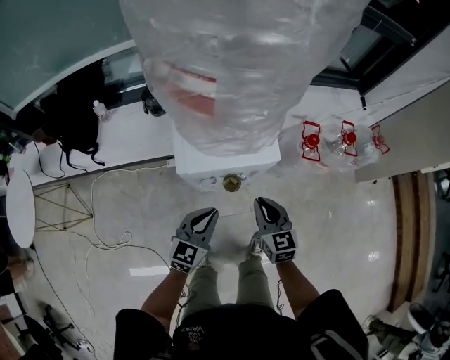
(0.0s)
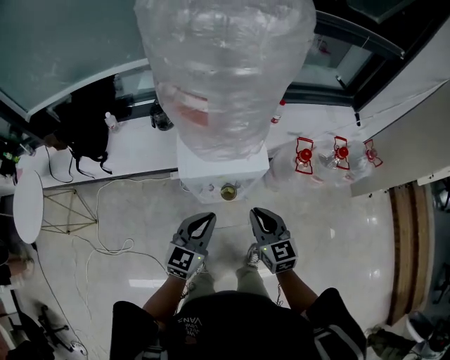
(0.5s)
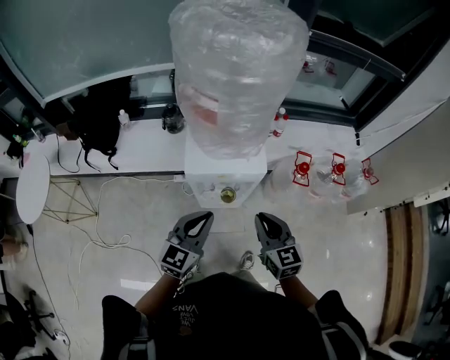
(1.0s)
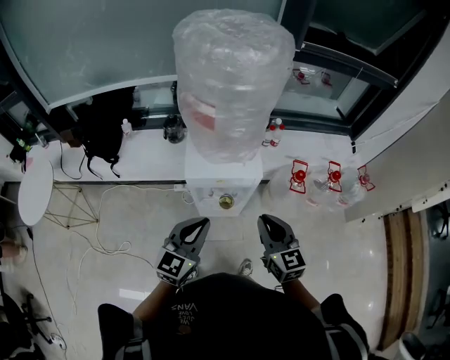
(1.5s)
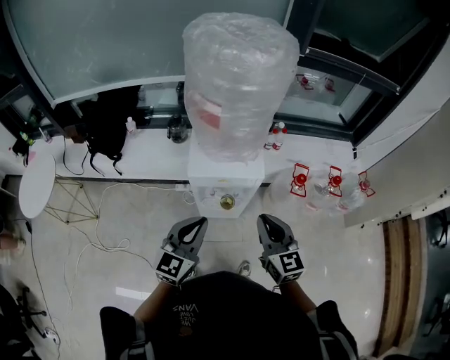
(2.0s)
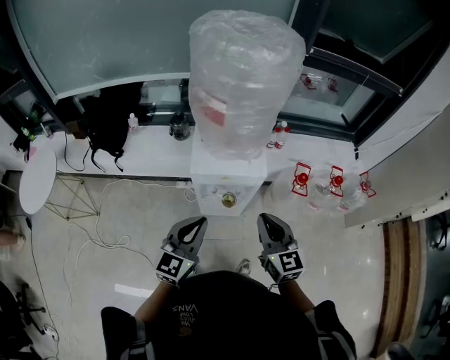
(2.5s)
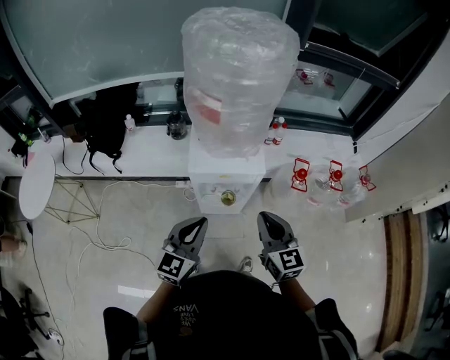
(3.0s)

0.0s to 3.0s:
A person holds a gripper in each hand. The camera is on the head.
0.0s to 1.5s: The left gripper travels upward by approximately 20 cm. The right gripper heads upward and backward, covering roughly 20 cm.
1.5s to 3.0s: There are only small adjustments of the grippers.

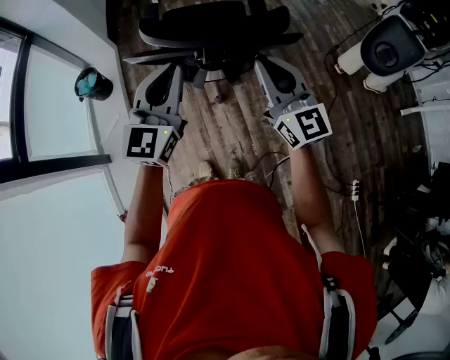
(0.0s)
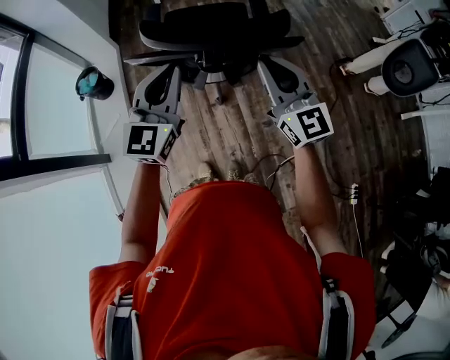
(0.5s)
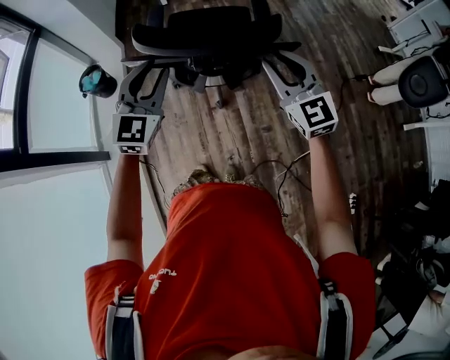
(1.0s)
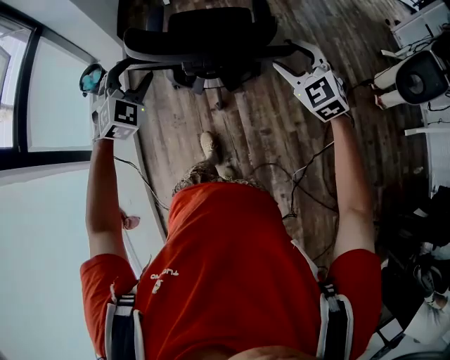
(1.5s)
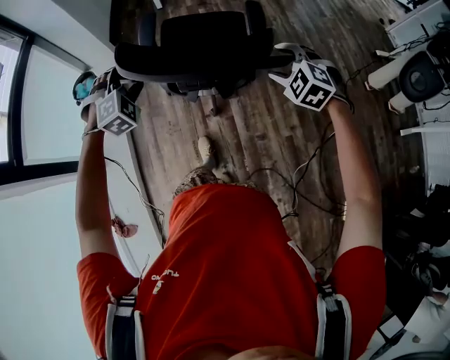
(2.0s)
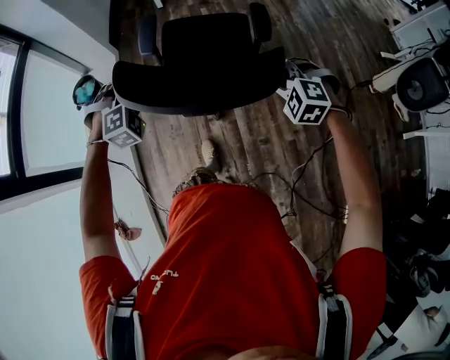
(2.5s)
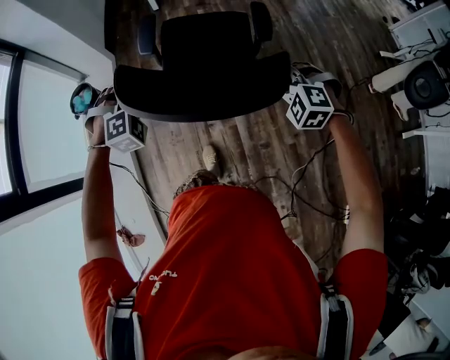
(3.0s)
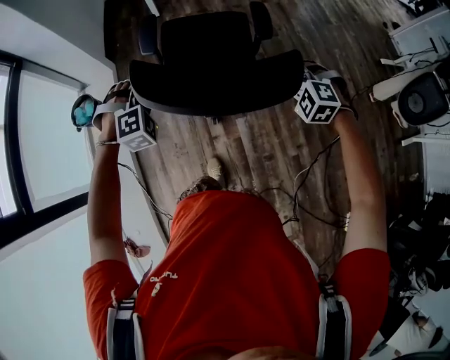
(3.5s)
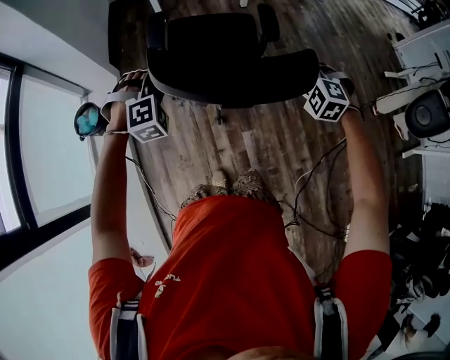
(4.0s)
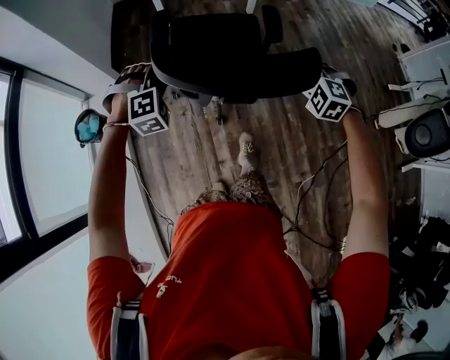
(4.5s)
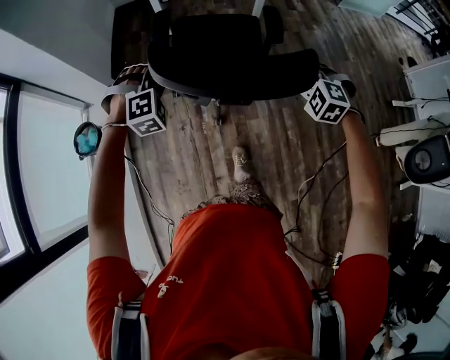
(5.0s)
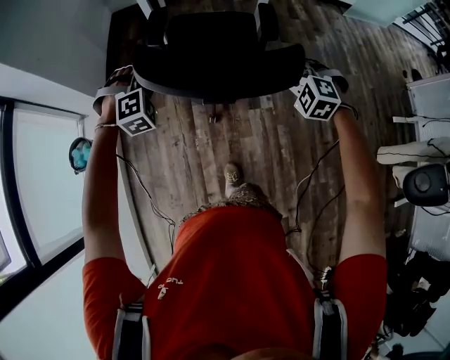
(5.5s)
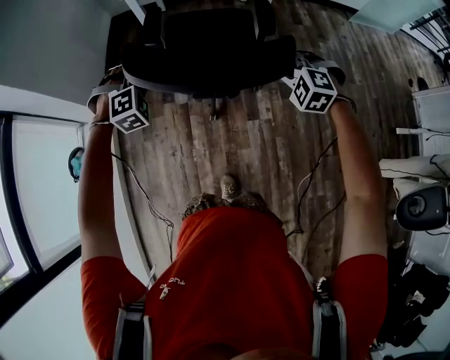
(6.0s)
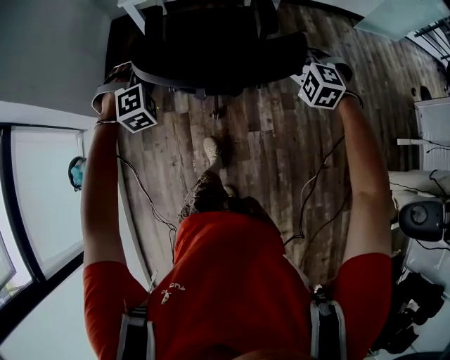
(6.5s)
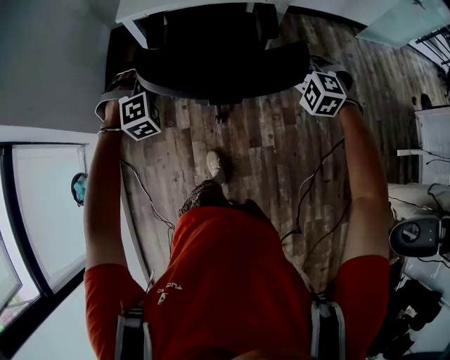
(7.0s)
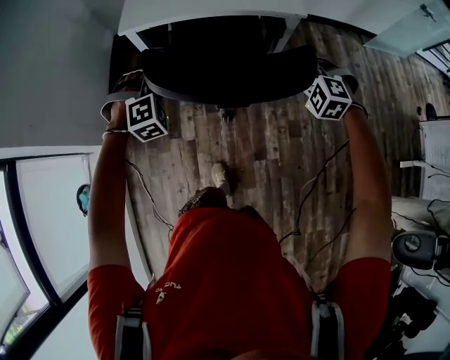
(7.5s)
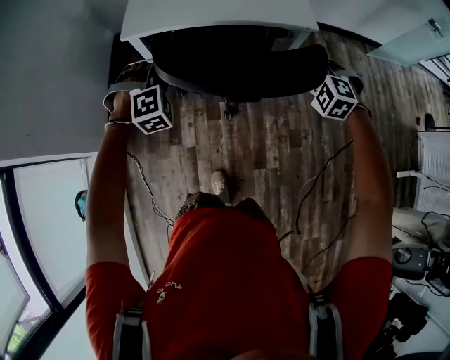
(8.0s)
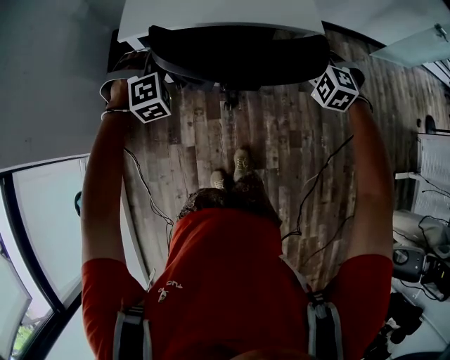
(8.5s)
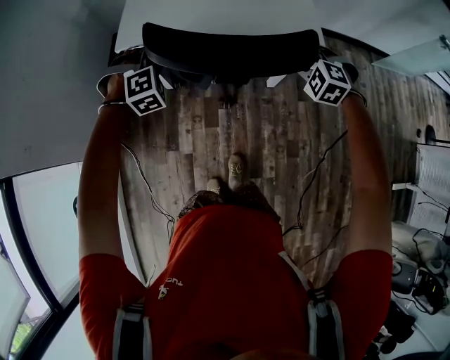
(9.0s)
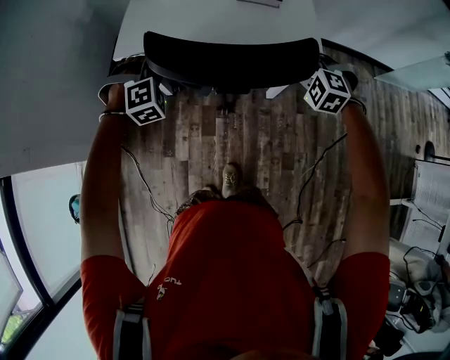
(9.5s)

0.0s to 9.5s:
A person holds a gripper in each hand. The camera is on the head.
0.0s to 2.0s: The left gripper travels forward, downward and to the left by about 20 cm, points its fingers approximately 50 degrees further downward, and opens its fingers. Meanwhile the right gripper shifts approximately 20 cm downward, forward and to the right, points its fingers approximately 60 degrees further downward, and opens its fingers.
2.0s to 4.0s: Both grippers travel together forward, some 25 cm. The left gripper closes its fingers. Meanwhile the right gripper closes.
4.0s to 5.5s: The two grippers go some 30 cm forward.
5.5s to 7.5s: Both grippers move forward, approximately 35 cm.
7.5s to 9.5s: The grippers both shift forward by roughly 25 cm.

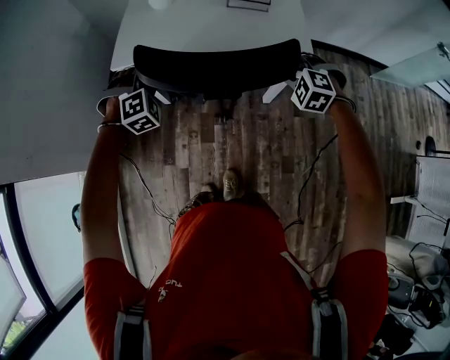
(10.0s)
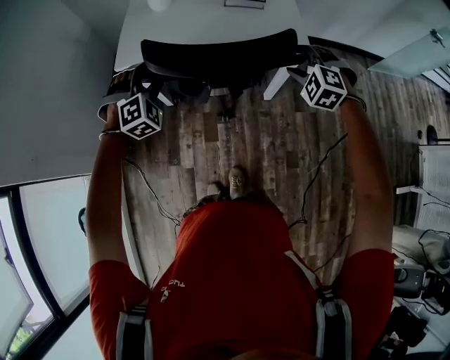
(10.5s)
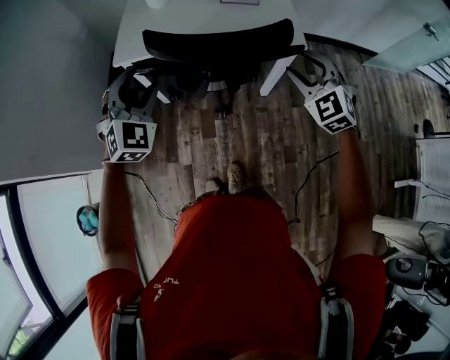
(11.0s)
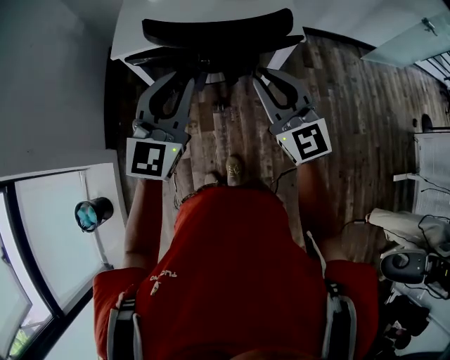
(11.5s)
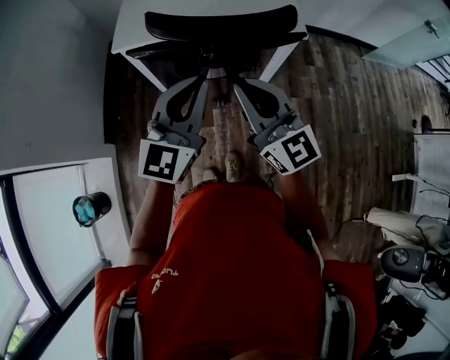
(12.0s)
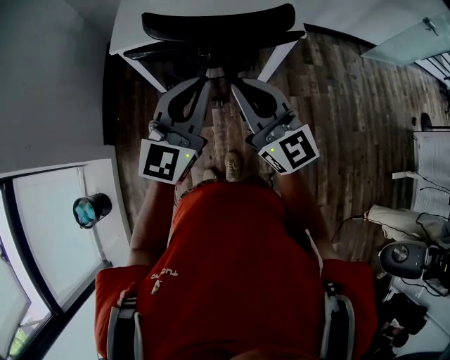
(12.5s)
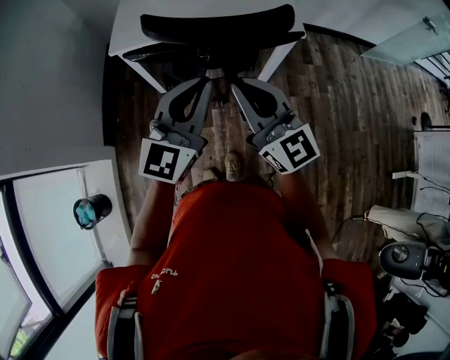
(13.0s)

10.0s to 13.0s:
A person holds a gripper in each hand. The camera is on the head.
10.0s to 11.5s: The left gripper travels backward and upward by roughly 25 cm, tilts its fingers roughly 40 degrees upward, and opens and closes again. Meanwhile the right gripper shifts some 25 cm backward, upward and to the left, and tips its fingers upward by about 50 degrees.
11.5s to 13.0s: The right gripper is displaced to the left by roughly 5 cm.

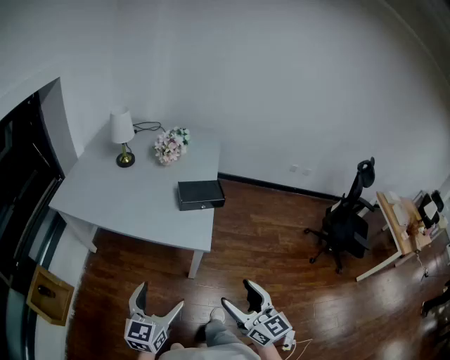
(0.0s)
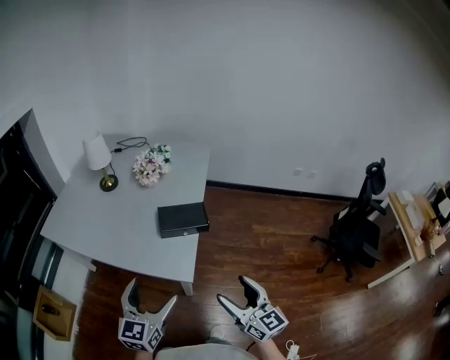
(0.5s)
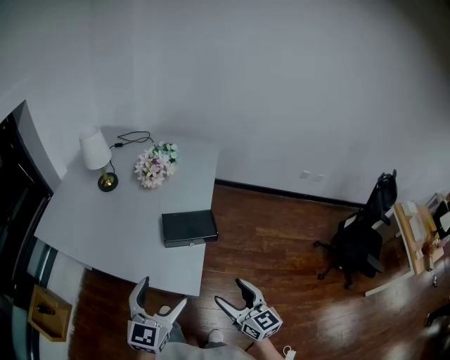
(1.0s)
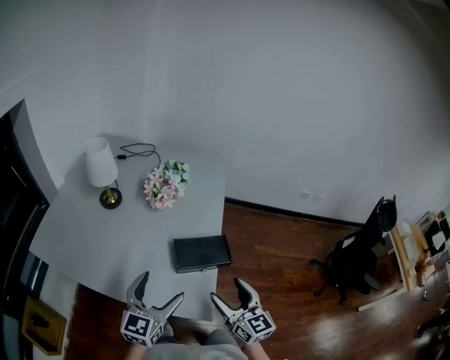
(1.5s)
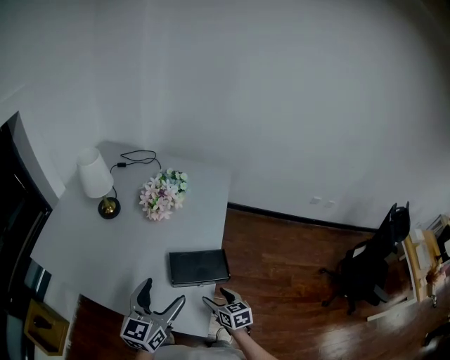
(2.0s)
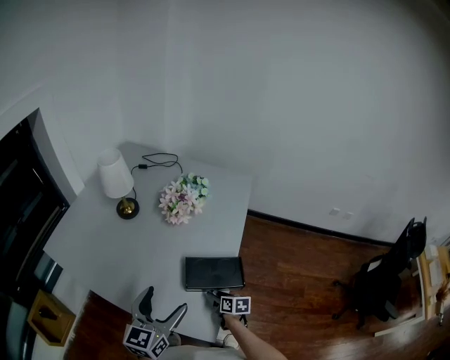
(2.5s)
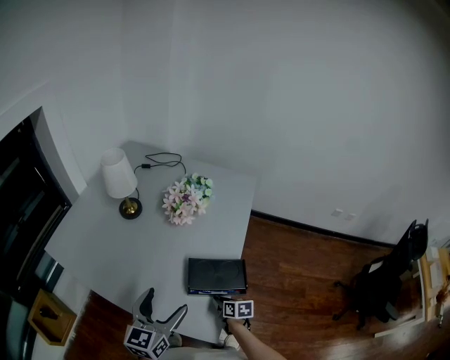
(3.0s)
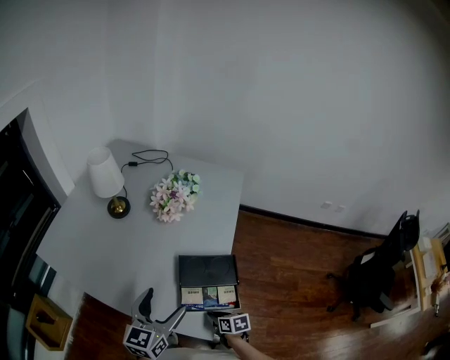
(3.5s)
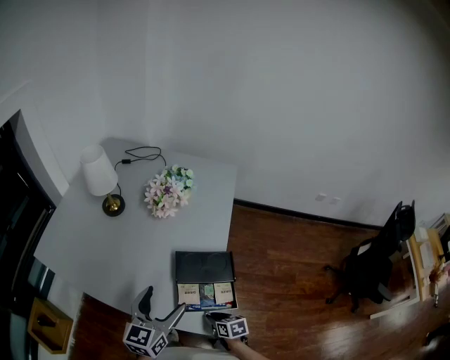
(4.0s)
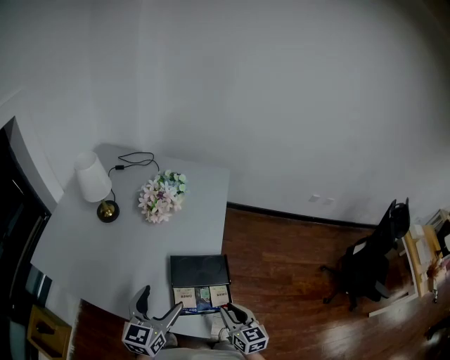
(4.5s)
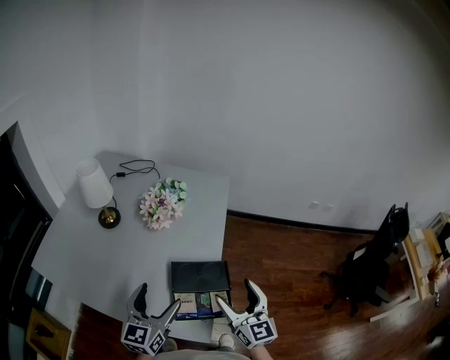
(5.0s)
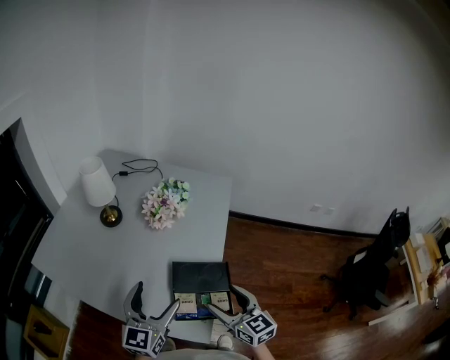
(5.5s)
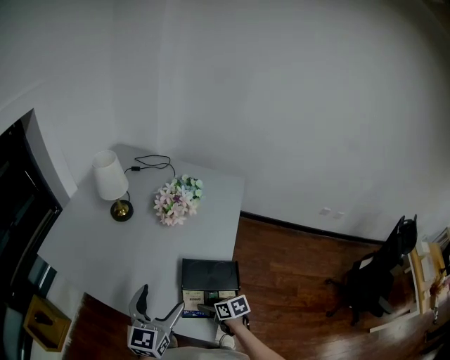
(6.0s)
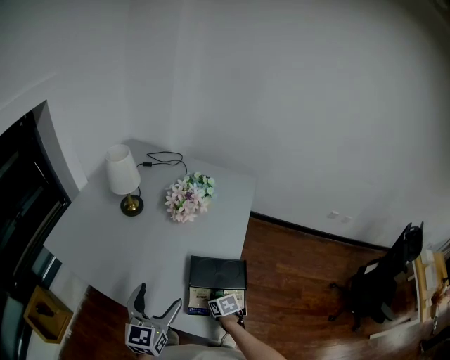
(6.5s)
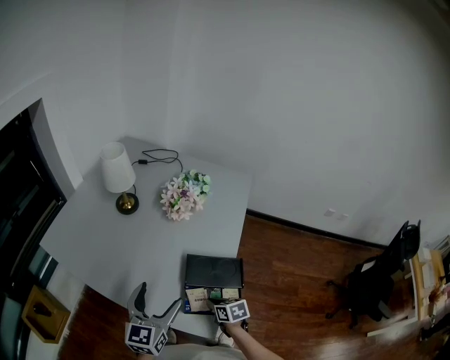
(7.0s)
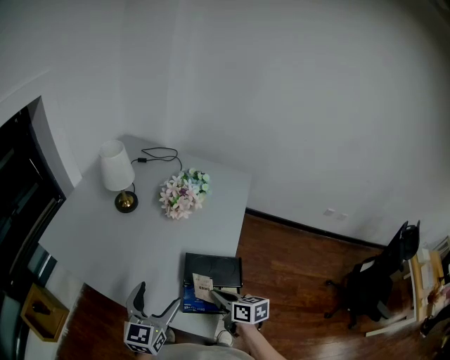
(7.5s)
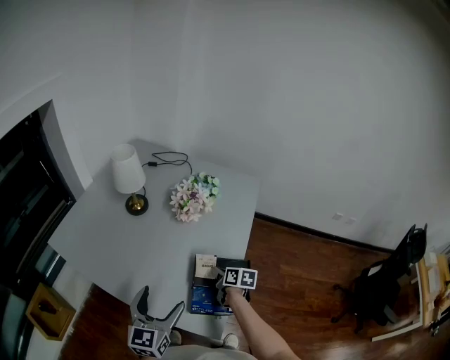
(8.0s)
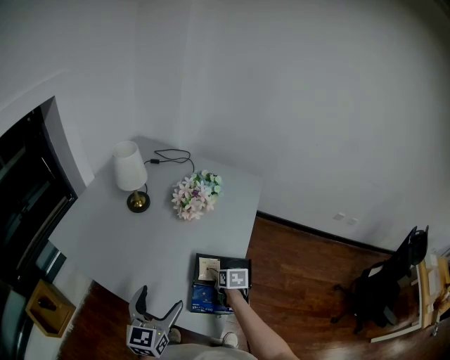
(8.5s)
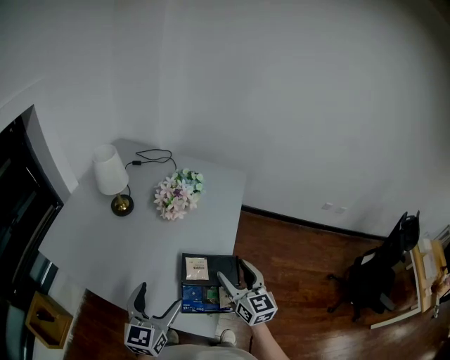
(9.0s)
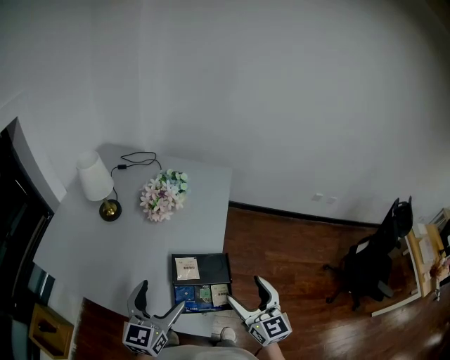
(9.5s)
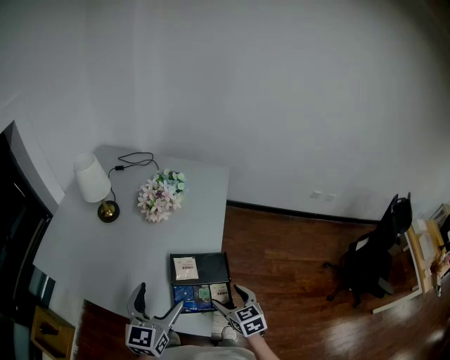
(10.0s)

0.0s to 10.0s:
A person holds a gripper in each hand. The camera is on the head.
0.0s to 2.0s: The right gripper is displaced forward and downward by approximately 50 cm, and points its fingers approximately 40 degrees further downward. The left gripper travels forward by some 40 cm.
2.0s to 4.0s: The right gripper travels downward and backward by about 15 cm, turns by roughly 20 degrees, and closes its fingers.
4.0s to 6.0s: The right gripper goes upward and returns, about 35 cm each way, and opens up.
6.0s to 8.0s: The right gripper moves up and down over some 15 cm, changing direction 2 times, changes its angle by approximately 20 degrees, and closes its fingers.
8.0s to 10.0s: The right gripper moves backward and to the right, roughly 15 cm, moves roughly 20 cm upward and comes back, swivels approximately 40 degrees, and opens, while the left gripper heads to the right, covering roughly 5 cm.
